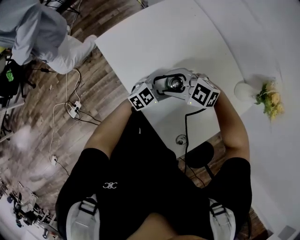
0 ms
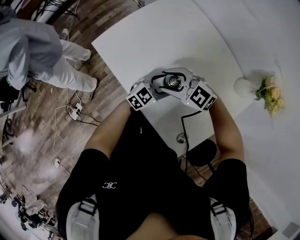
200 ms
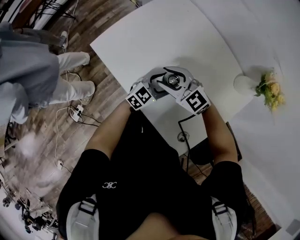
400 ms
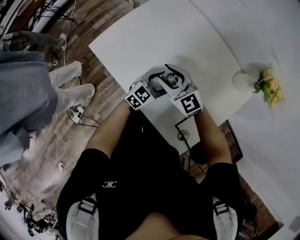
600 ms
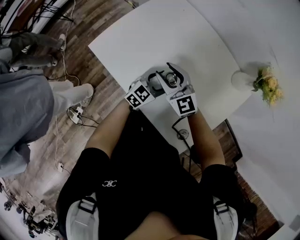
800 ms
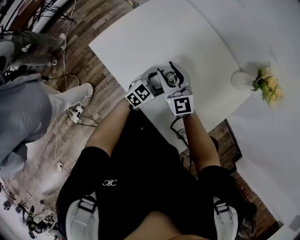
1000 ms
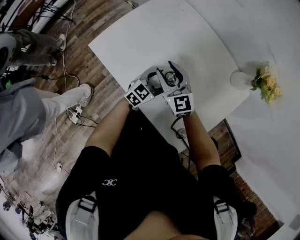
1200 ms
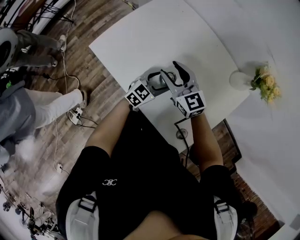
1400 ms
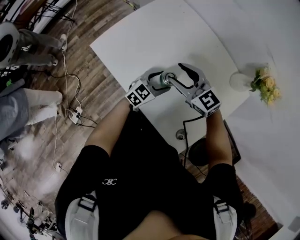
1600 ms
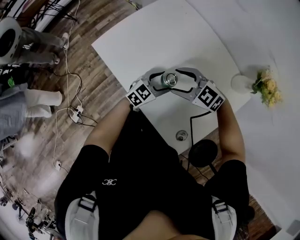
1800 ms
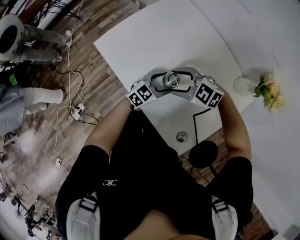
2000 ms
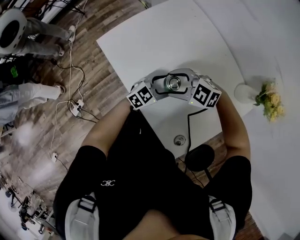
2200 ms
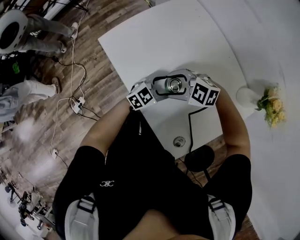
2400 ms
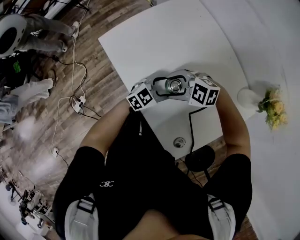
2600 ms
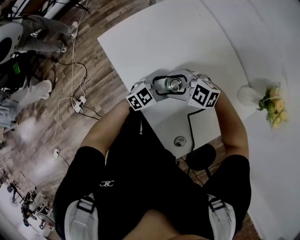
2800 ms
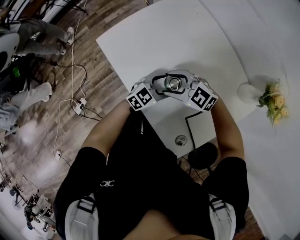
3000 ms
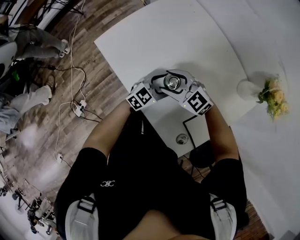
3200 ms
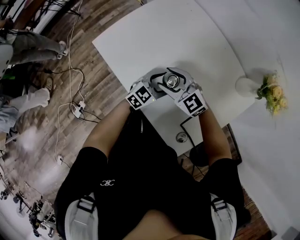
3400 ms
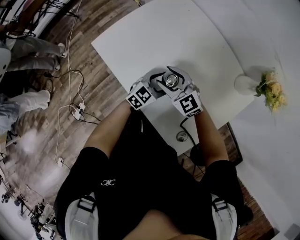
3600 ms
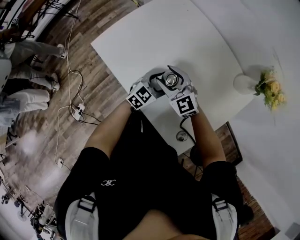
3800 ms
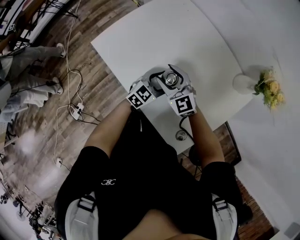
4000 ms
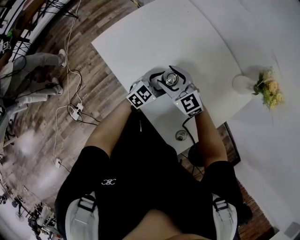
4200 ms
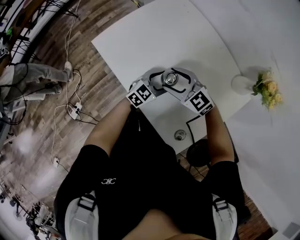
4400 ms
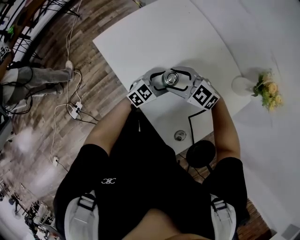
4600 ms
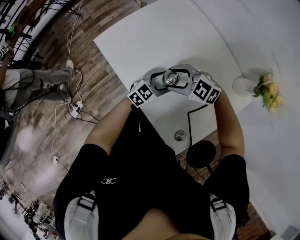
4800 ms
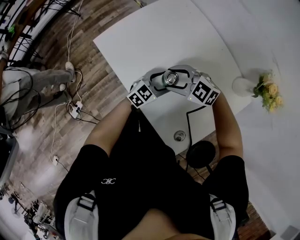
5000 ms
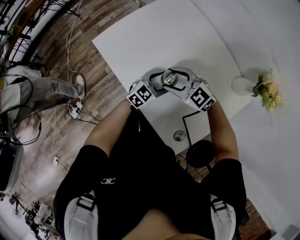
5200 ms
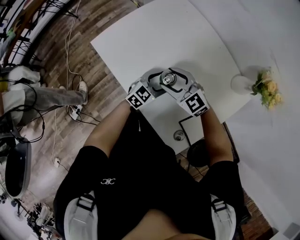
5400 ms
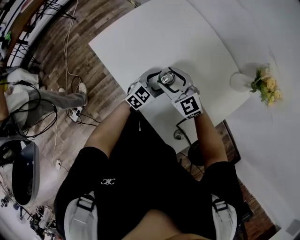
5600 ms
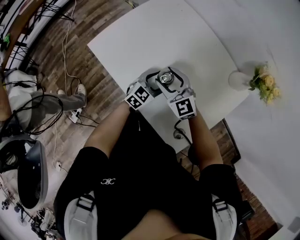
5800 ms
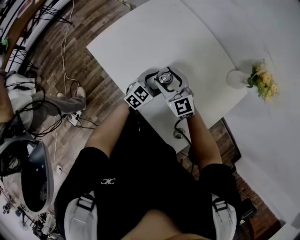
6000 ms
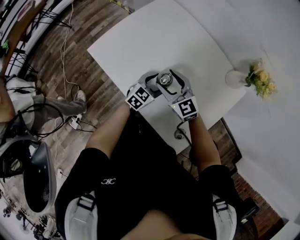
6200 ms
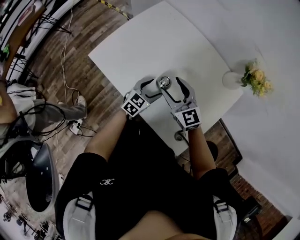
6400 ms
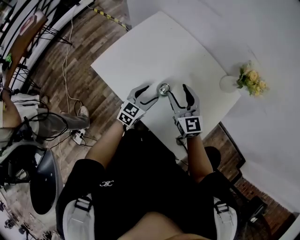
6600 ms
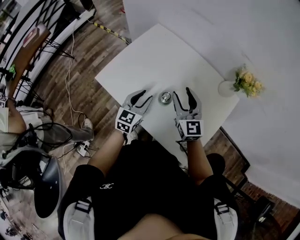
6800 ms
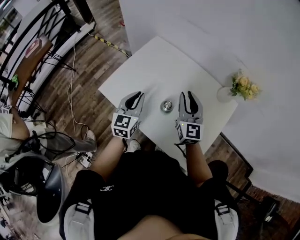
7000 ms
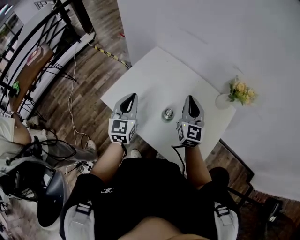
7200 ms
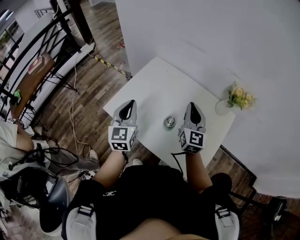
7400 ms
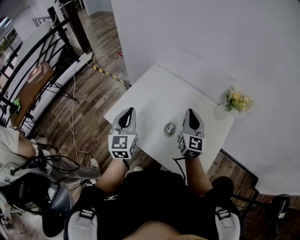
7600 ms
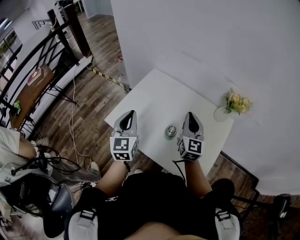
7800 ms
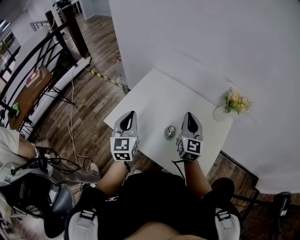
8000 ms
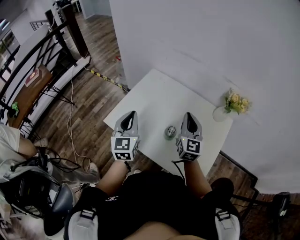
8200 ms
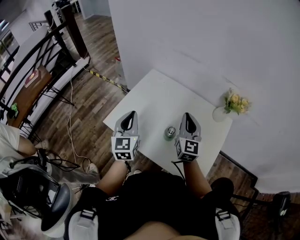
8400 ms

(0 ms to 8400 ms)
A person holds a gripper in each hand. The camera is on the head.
0 ms - 1400 ms: The right gripper shifts by some 10 cm, and rotates about 60 degrees.
1400 ms - 2800 ms: The right gripper goes some 10 cm downward, and changes its angle by approximately 60 degrees.
2800 ms - 4200 ms: The right gripper turns by some 50 degrees.
5600 ms - 7000 ms: The right gripper moves upward and to the right, roughly 20 cm, changes its angle by approximately 50 degrees, and closes its fingers, while the left gripper moves upward and to the left, about 25 cm, turns by approximately 30 degrees, and closes up.
7000 ms - 8400 ms: The left gripper goes roughly 10 cm upward and to the left.

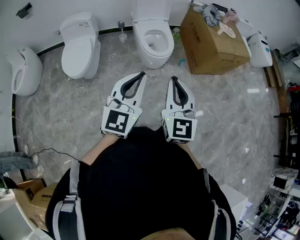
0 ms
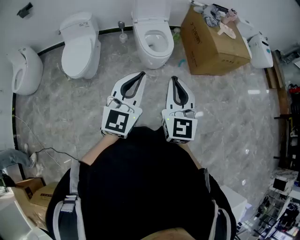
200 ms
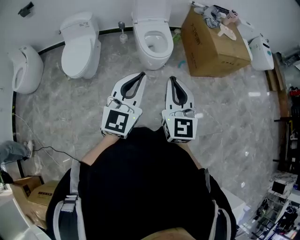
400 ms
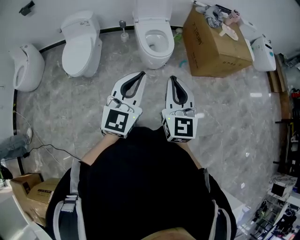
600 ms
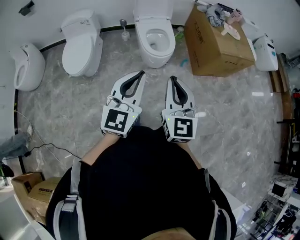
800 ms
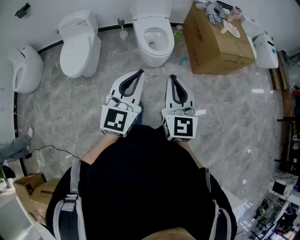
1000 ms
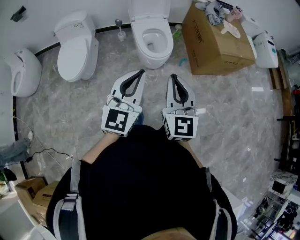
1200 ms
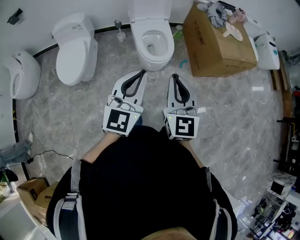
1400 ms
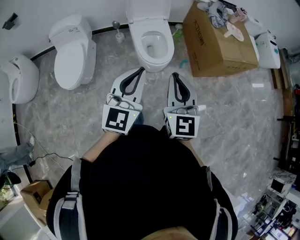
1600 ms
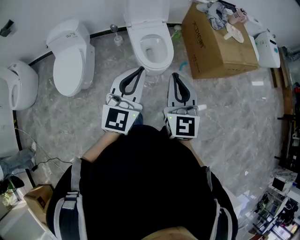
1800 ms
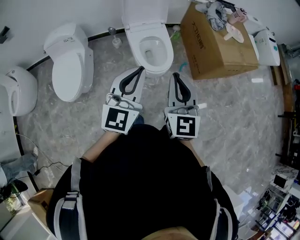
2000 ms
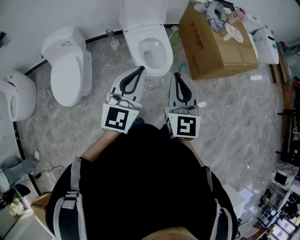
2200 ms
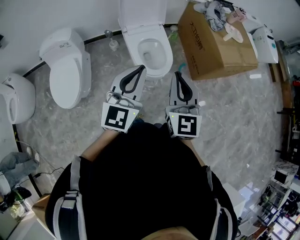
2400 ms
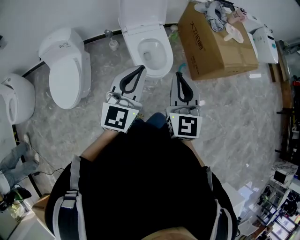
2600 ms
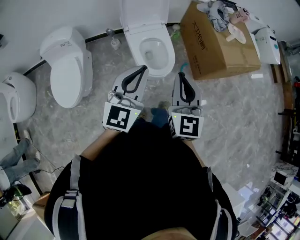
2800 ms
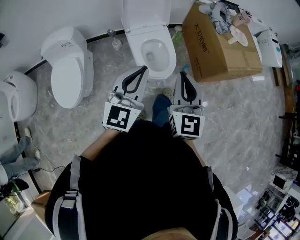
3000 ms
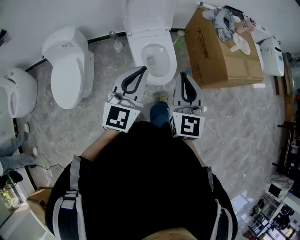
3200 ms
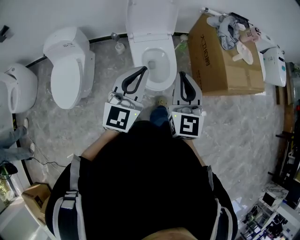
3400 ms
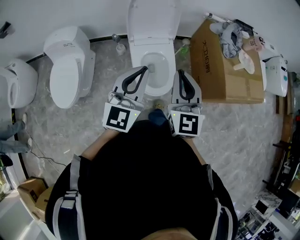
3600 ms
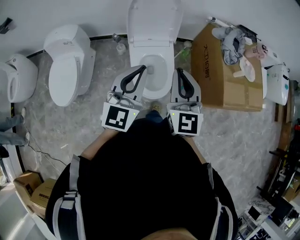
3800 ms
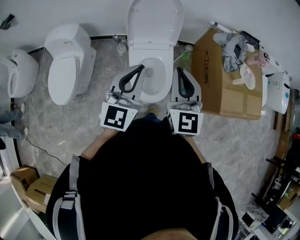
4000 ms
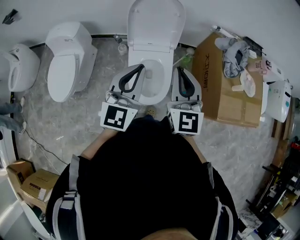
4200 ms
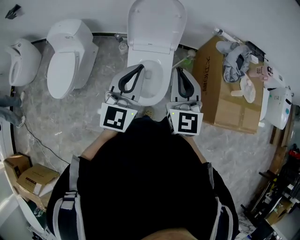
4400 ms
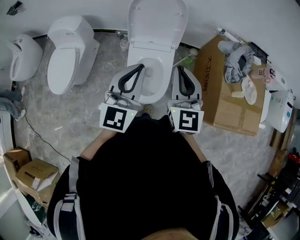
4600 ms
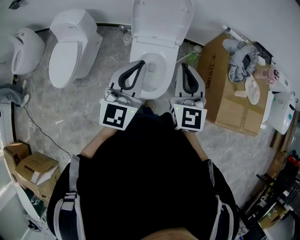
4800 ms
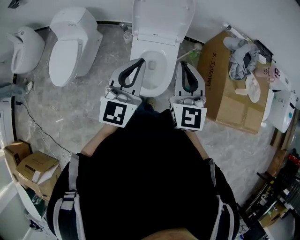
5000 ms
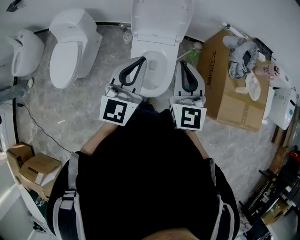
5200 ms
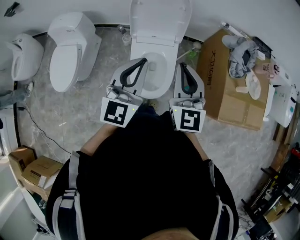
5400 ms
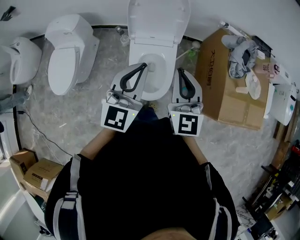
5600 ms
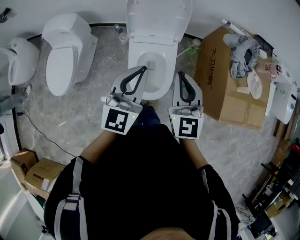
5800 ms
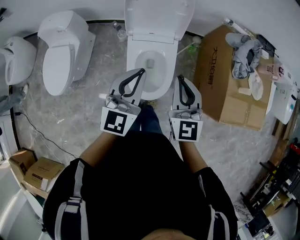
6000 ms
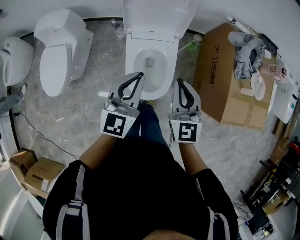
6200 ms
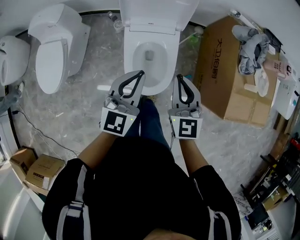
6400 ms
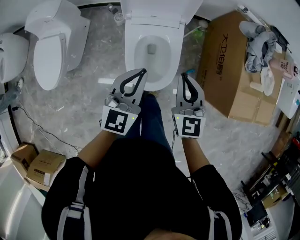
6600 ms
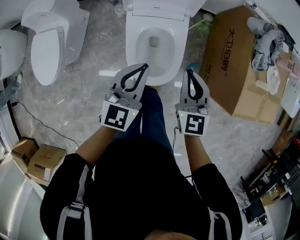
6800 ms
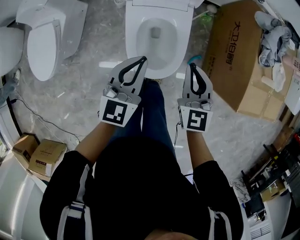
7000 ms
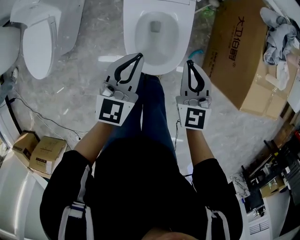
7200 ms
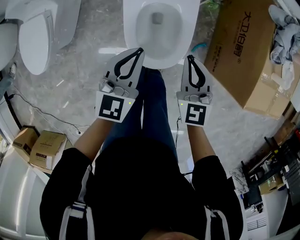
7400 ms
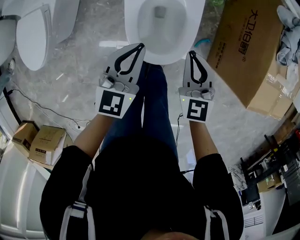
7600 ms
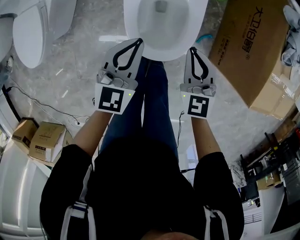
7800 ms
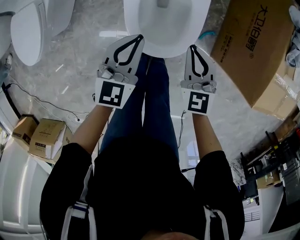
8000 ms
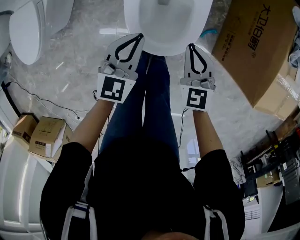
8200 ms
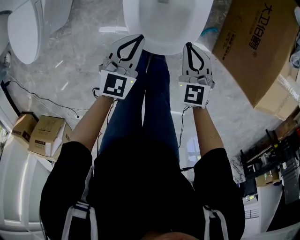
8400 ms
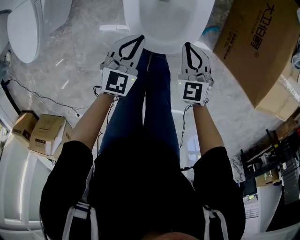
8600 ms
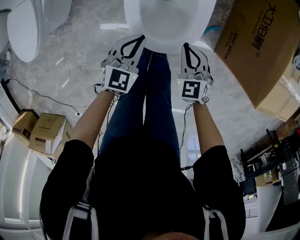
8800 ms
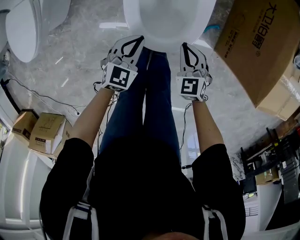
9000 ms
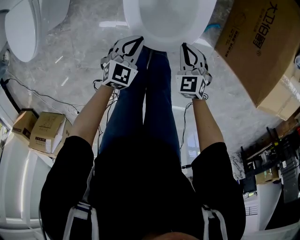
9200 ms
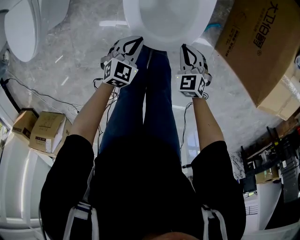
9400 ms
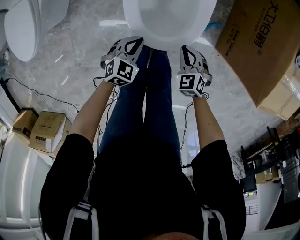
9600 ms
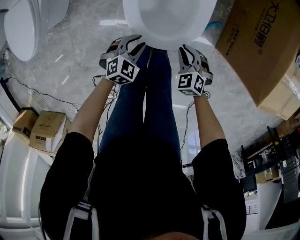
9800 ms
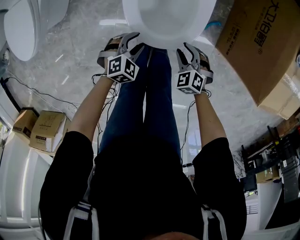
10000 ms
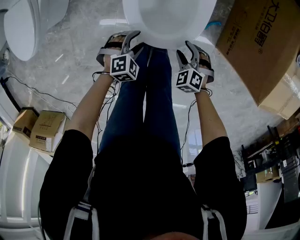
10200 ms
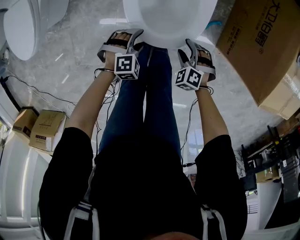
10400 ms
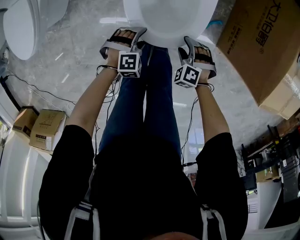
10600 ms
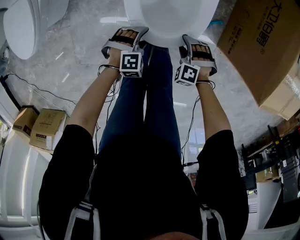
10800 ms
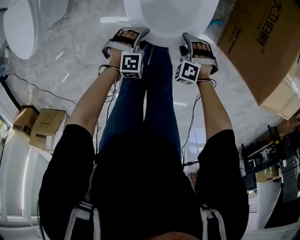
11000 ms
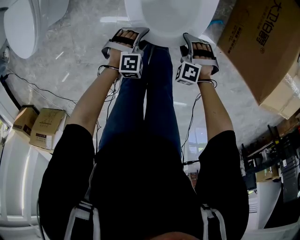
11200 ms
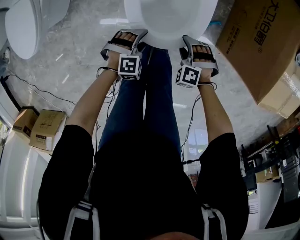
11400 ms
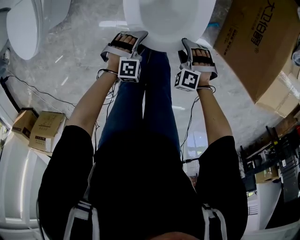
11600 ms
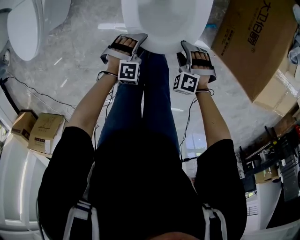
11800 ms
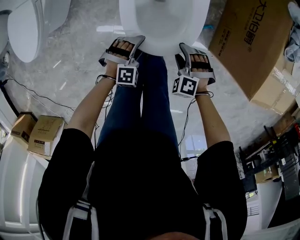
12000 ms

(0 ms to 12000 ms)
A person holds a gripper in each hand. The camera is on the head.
0 ms - 1600 ms: The grippers both shift forward by roughly 20 cm.
1600 ms - 3000 ms: Both grippers travel together forward, roughly 15 cm.
3000 ms - 4400 ms: Both grippers travel together forward, some 25 cm. The left gripper changes its angle by approximately 20 degrees, while the right gripper turns by some 20 degrees.
4400 ms - 6000 ms: Both grippers move downward, roughly 10 cm.
6000 ms - 7600 ms: Both grippers travel together downward, some 25 cm.
7600 ms - 9000 ms: The two grippers go roughly 20 cm downward.
9000 ms - 10400 ms: The two grippers go roughly 10 cm downward and backward. The left gripper rolls clockwise, seen from behind, by about 40 degrees, and opens up. Meanwhile the right gripper turns by some 40 degrees, and opens up.
10400 ms - 12000 ms: The right gripper is displaced upward by some 10 cm.

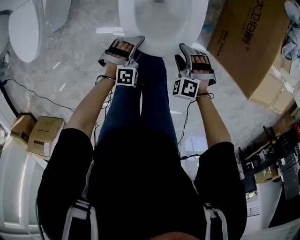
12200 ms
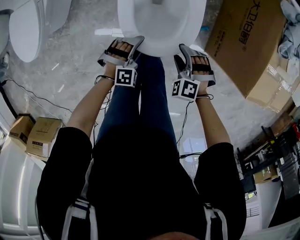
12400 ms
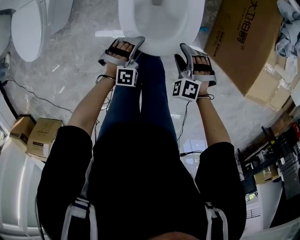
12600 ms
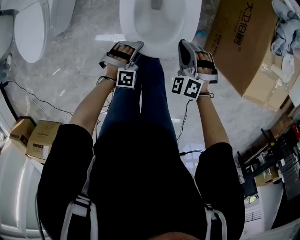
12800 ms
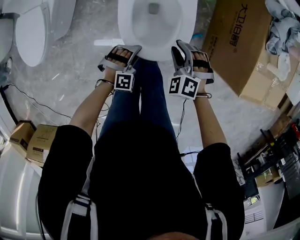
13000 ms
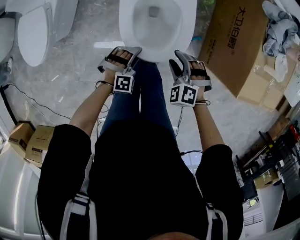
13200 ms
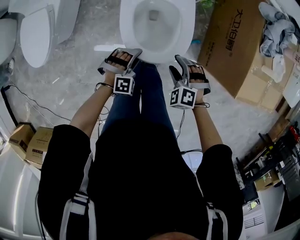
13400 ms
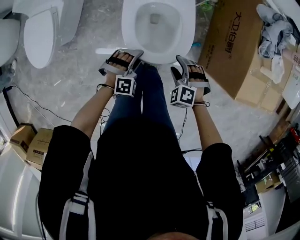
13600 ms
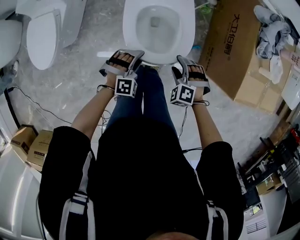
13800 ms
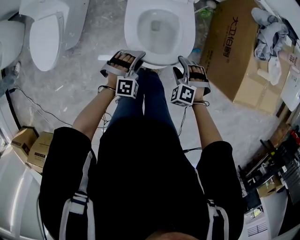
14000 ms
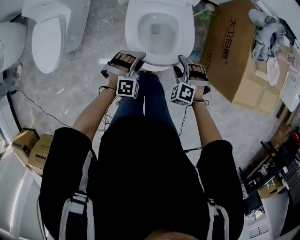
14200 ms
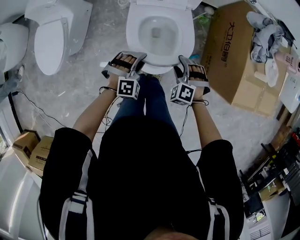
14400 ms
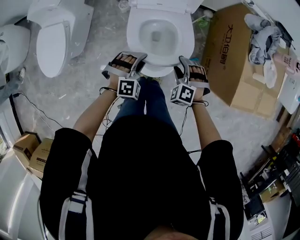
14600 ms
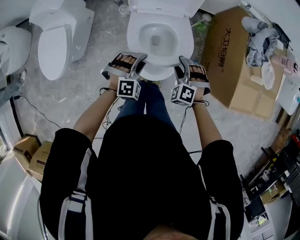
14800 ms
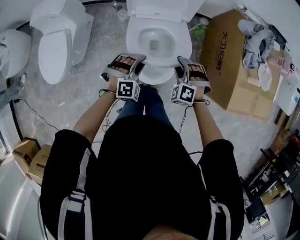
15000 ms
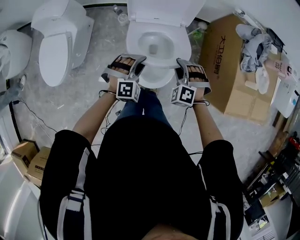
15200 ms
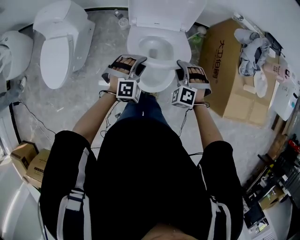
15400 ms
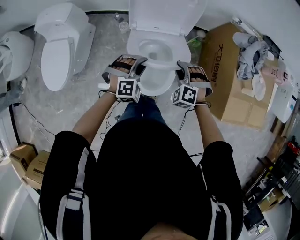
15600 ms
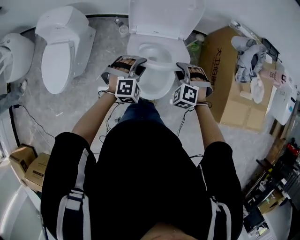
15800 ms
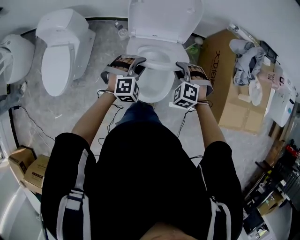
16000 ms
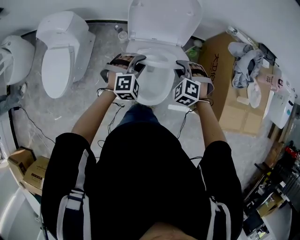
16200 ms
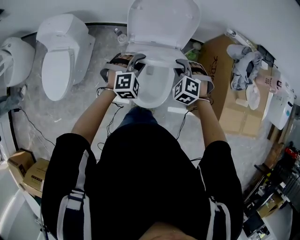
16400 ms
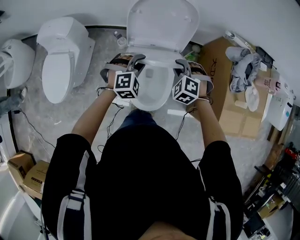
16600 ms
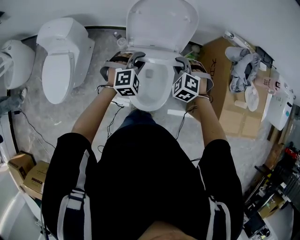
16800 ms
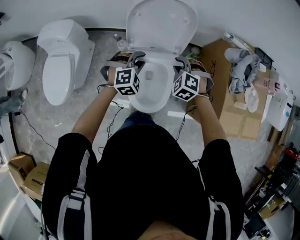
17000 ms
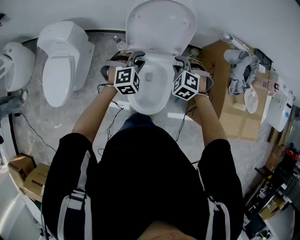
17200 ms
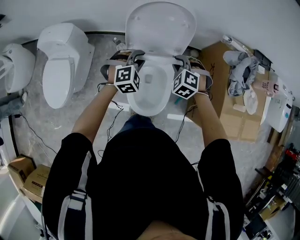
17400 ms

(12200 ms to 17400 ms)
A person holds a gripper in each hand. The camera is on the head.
12200 ms - 14000 ms: Both grippers travel together upward, roughly 15 cm. The right gripper closes and opens again. The left gripper closes its fingers.
14000 ms - 15600 ms: The right gripper goes about 20 cm forward and upward, and closes up. Meanwhile the left gripper heads upward and forward, covering roughly 15 cm.
15600 ms - 17400 ms: Both grippers move forward and upward, some 15 cm.
